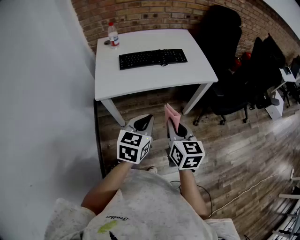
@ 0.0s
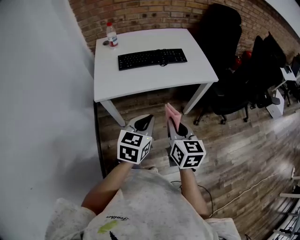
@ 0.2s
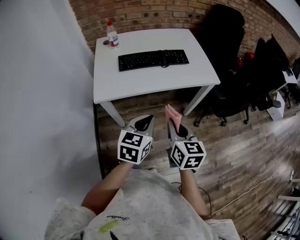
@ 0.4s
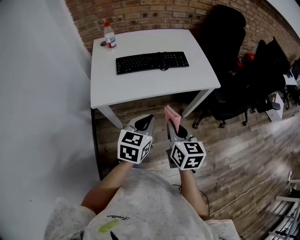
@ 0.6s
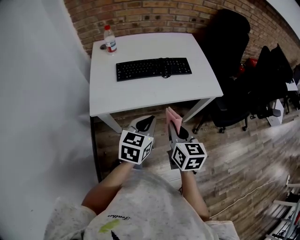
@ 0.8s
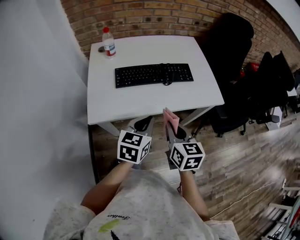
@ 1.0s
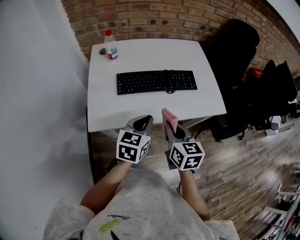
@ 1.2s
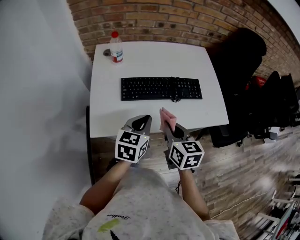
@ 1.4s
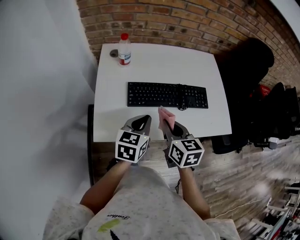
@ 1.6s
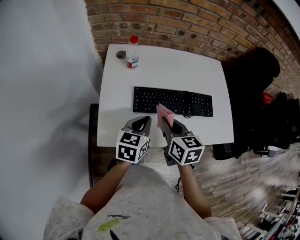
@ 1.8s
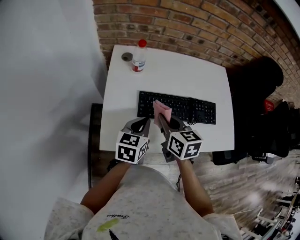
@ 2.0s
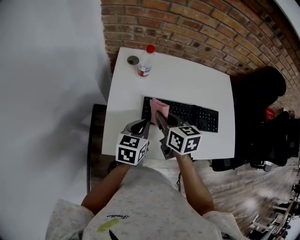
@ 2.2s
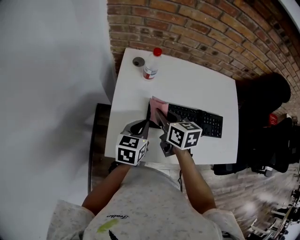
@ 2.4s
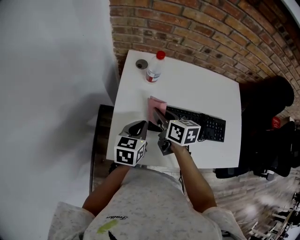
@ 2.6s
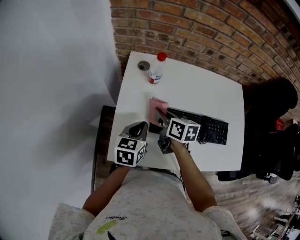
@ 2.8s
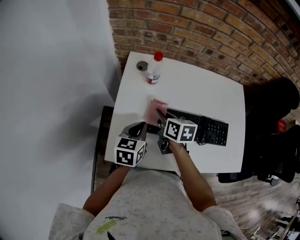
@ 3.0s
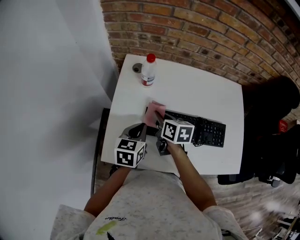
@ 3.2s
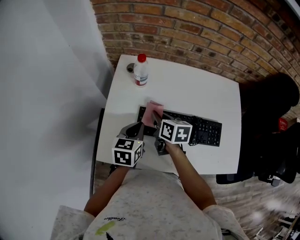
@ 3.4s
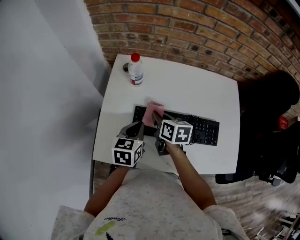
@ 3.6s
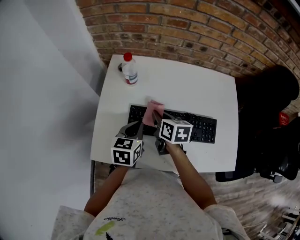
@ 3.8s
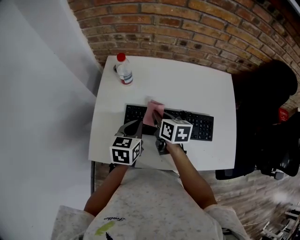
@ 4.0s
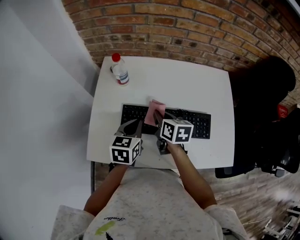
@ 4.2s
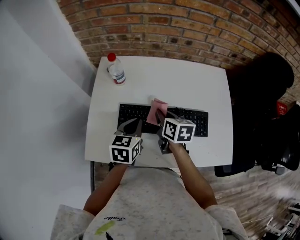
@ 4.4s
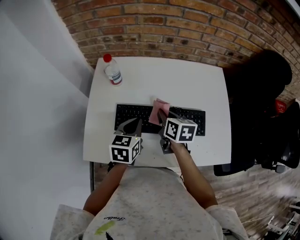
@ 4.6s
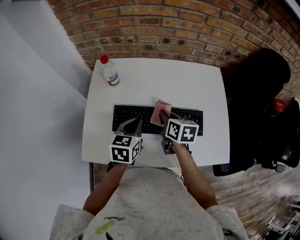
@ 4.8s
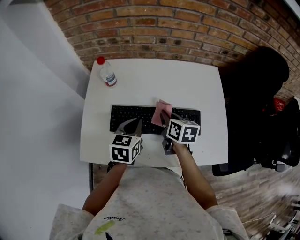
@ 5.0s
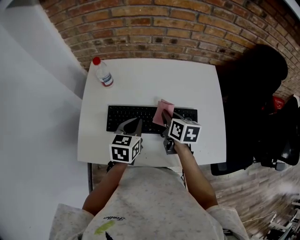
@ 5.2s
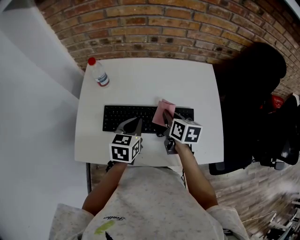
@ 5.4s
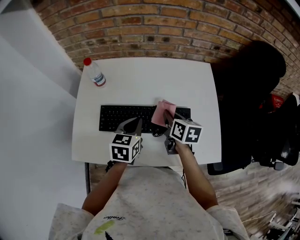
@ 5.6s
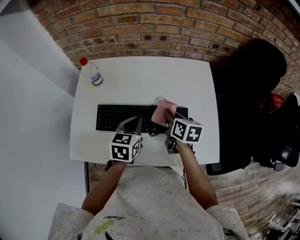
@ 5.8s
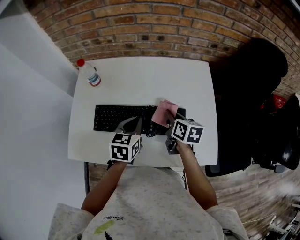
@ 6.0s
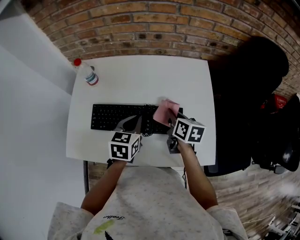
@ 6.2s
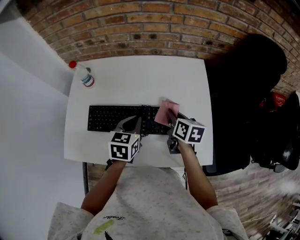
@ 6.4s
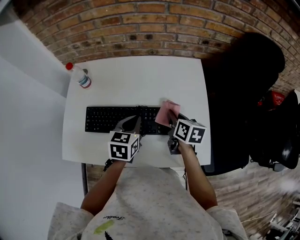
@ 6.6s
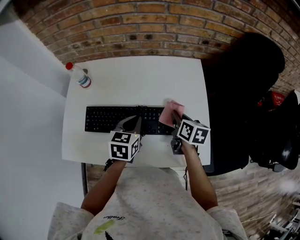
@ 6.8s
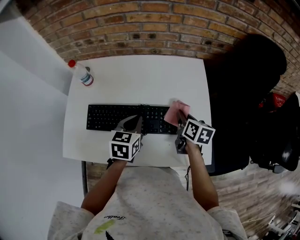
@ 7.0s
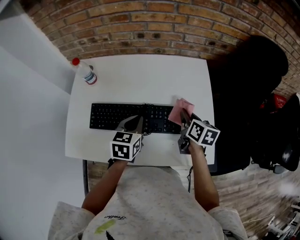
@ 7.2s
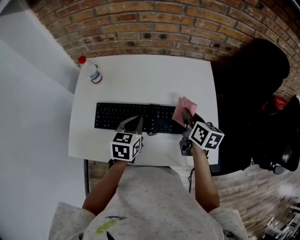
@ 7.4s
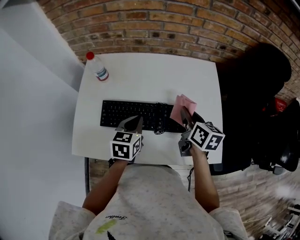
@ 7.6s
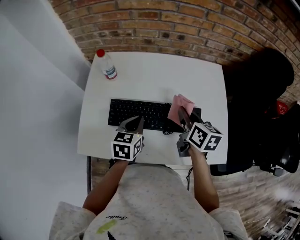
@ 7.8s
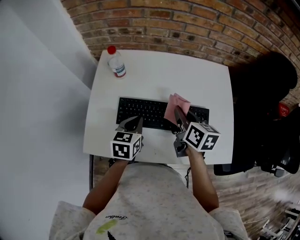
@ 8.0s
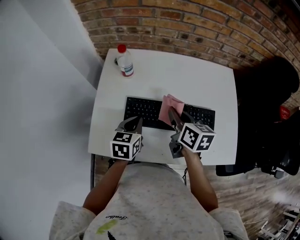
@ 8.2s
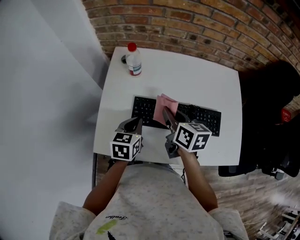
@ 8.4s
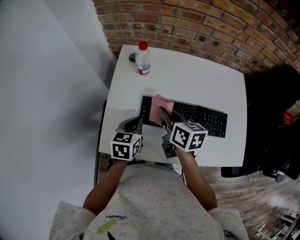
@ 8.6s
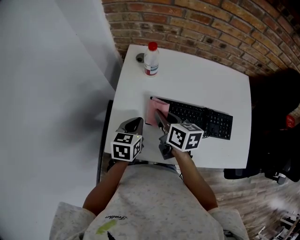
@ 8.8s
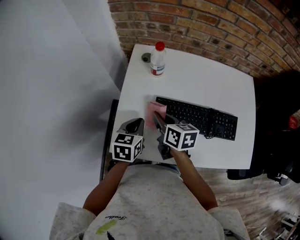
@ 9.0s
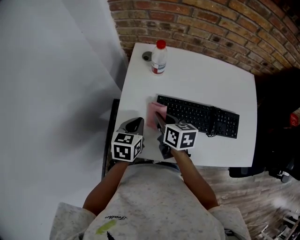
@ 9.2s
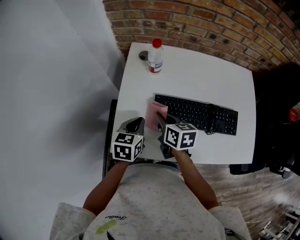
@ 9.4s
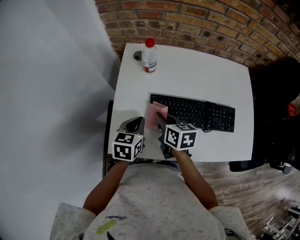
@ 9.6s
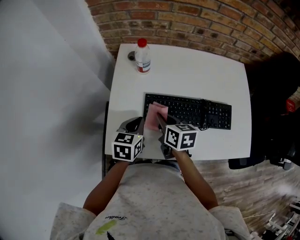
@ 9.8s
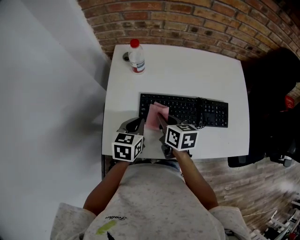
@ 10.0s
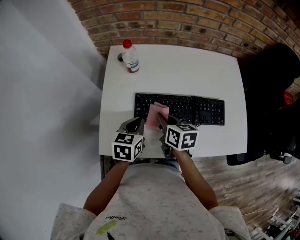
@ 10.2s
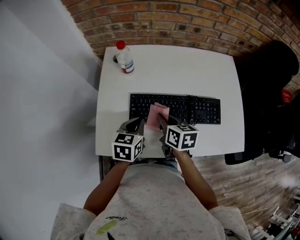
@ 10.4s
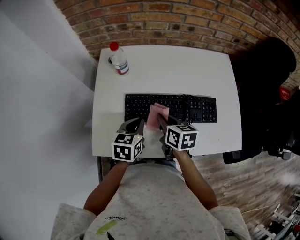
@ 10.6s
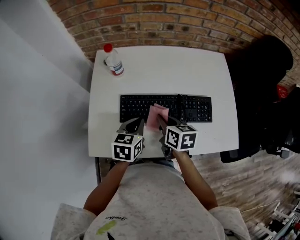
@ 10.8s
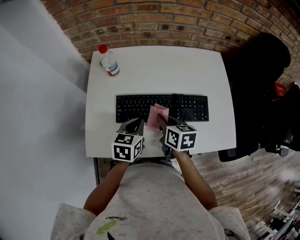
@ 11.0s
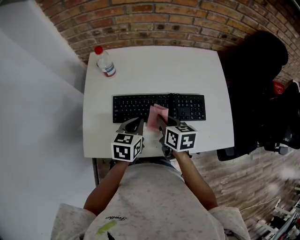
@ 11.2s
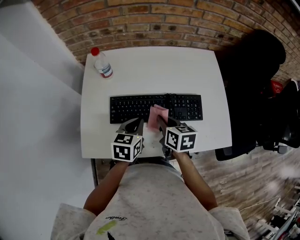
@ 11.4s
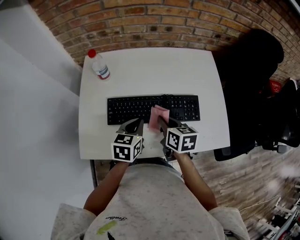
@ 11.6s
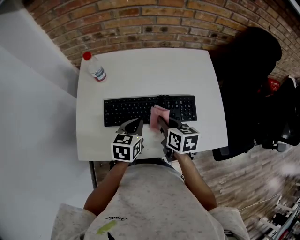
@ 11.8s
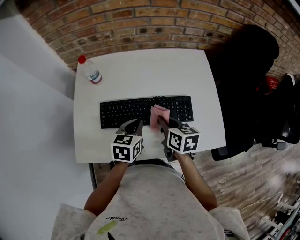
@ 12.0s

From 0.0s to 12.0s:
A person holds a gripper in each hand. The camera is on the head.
From 0.0s to 1.6s: The right gripper heads forward and to the left, covering roughly 35 cm. The left gripper shifts approximately 30 cm forward.
From 1.6s to 3.0s: The two grippers go some 20 cm forward and to the left. The right gripper changes its angle by some 20 degrees.
From 3.0s to 4.4s: Both grippers move to the right, some 15 cm.
From 4.4s to 6.0s: Both grippers travel together to the right, some 15 cm.
From 6.0s to 7.6s: The right gripper travels upward by approximately 5 cm, and moves approximately 10 cm to the right and comes back.
From 7.6s to 9.0s: Both grippers travel together to the left, some 30 cm. The right gripper swivels some 20 degrees.
From 9.0s to 10.4s: The grippers both shift to the right by some 10 cm.
From 10.4s to 12.0s: Both grippers move to the right, approximately 15 cm.

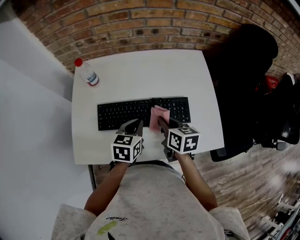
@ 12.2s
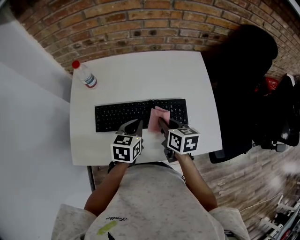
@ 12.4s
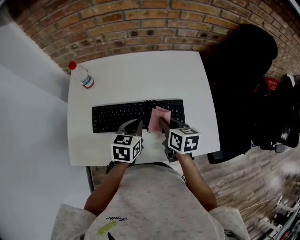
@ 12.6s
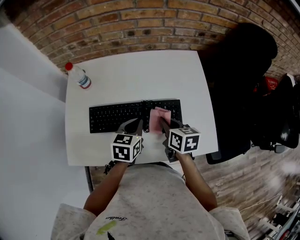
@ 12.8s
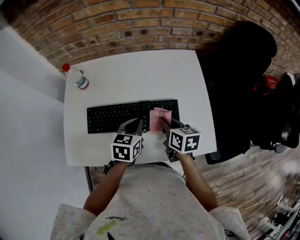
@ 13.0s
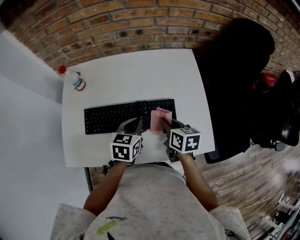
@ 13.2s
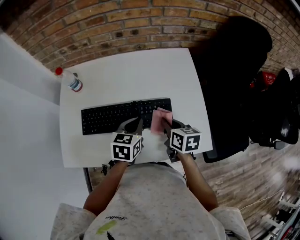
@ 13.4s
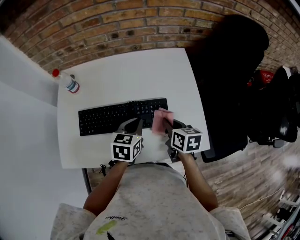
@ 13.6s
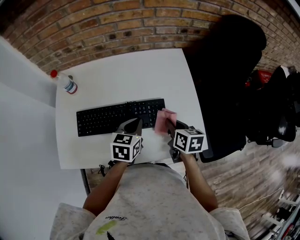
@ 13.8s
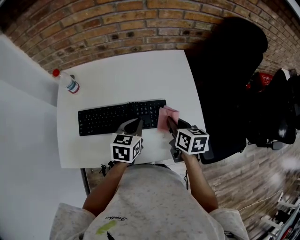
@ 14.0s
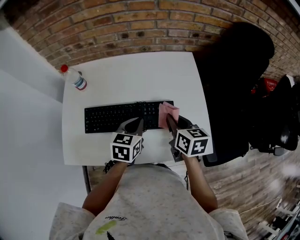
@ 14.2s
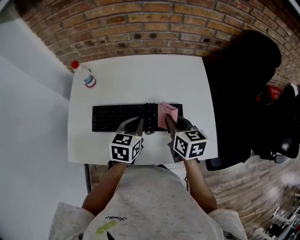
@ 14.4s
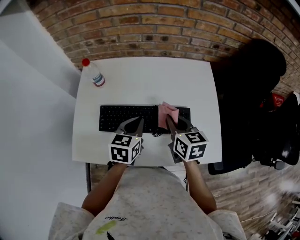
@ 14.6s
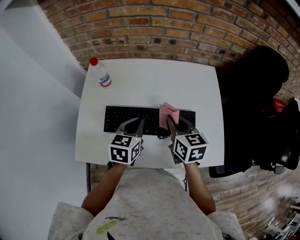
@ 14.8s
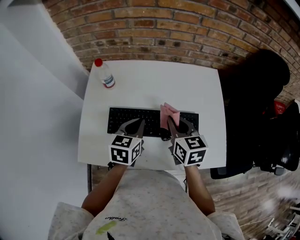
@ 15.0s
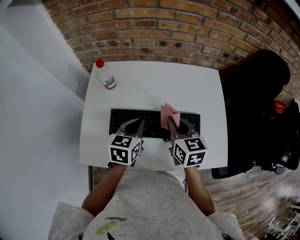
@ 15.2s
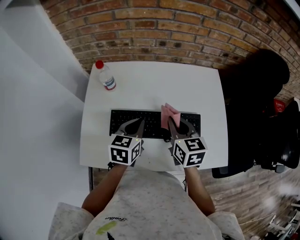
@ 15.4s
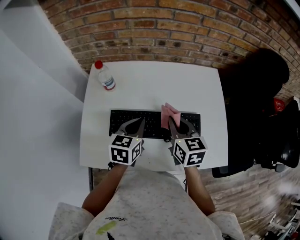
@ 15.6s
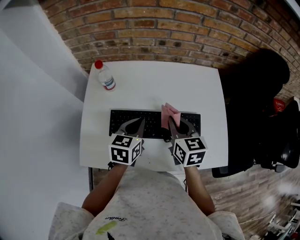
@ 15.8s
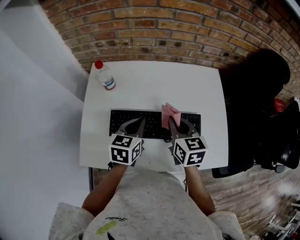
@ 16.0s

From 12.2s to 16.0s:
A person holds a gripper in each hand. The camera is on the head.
From 12.2s to 13.4s: Both grippers move to the right, roughly 10 cm.
From 13.4s to 14.8s: The right gripper is displaced to the left and upward by about 15 cm. Meanwhile the left gripper is displaced to the left by roughly 10 cm.
From 14.8s to 16.0s: The grippers stay close to where they were, moving slightly.

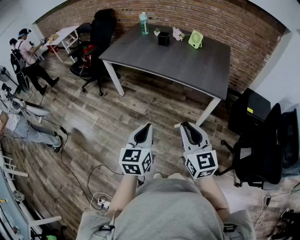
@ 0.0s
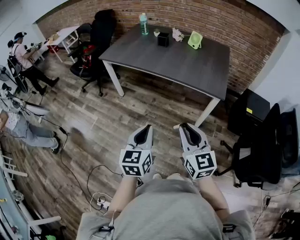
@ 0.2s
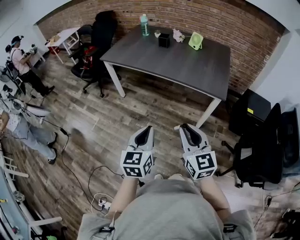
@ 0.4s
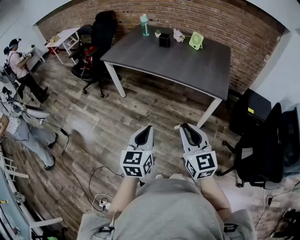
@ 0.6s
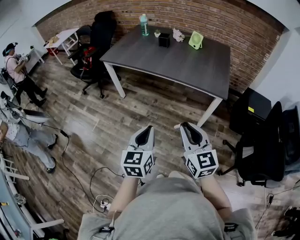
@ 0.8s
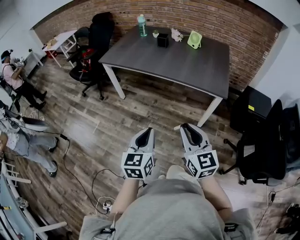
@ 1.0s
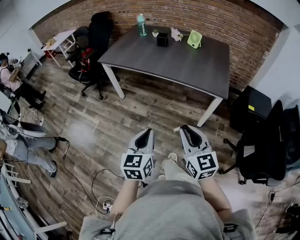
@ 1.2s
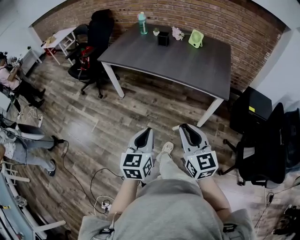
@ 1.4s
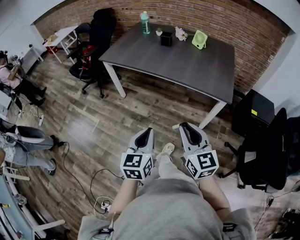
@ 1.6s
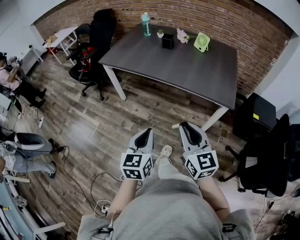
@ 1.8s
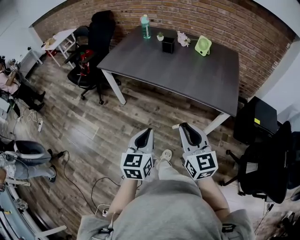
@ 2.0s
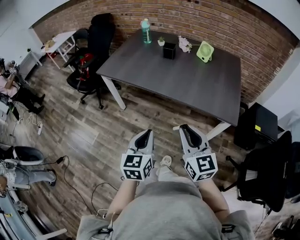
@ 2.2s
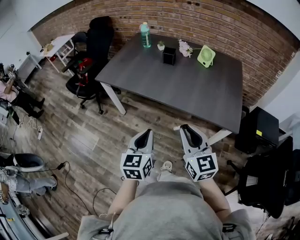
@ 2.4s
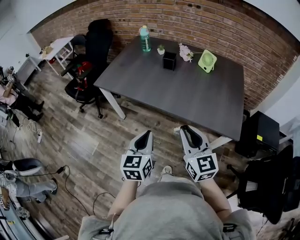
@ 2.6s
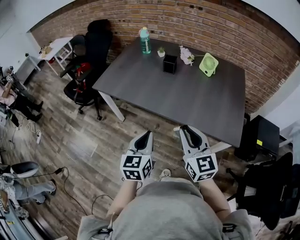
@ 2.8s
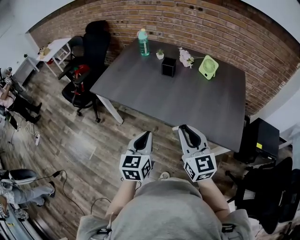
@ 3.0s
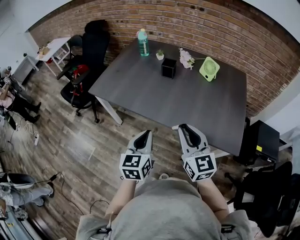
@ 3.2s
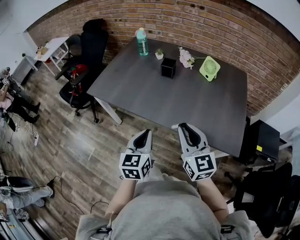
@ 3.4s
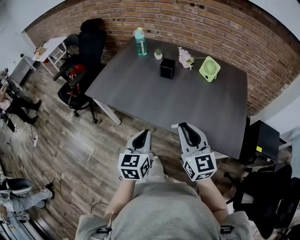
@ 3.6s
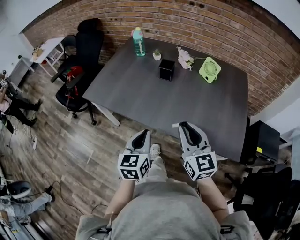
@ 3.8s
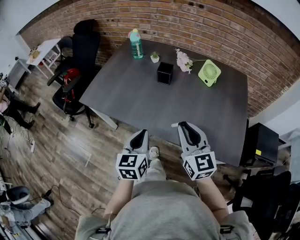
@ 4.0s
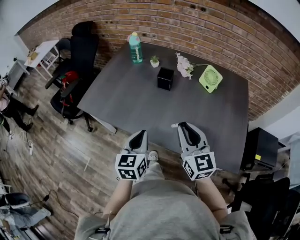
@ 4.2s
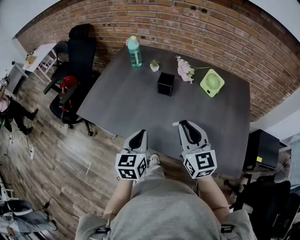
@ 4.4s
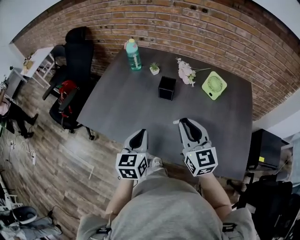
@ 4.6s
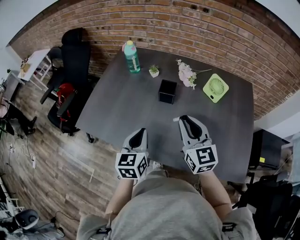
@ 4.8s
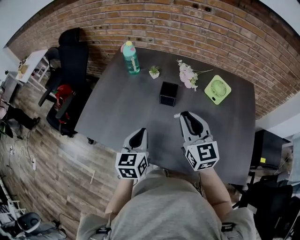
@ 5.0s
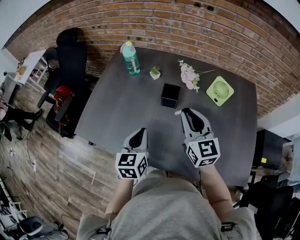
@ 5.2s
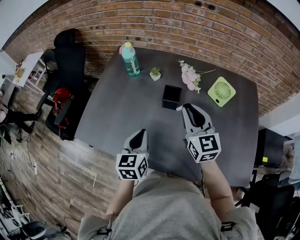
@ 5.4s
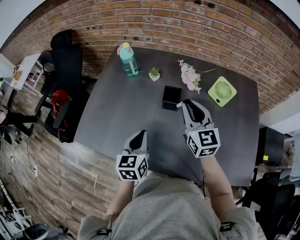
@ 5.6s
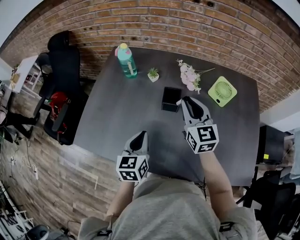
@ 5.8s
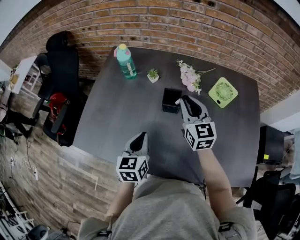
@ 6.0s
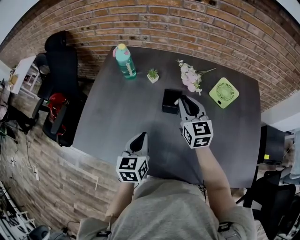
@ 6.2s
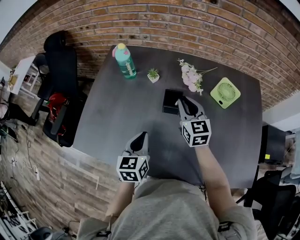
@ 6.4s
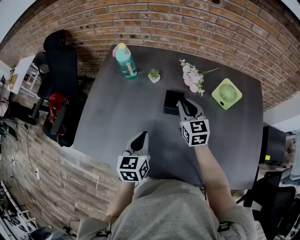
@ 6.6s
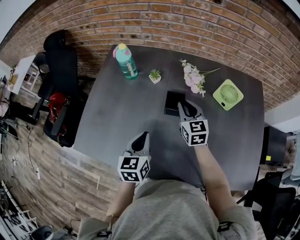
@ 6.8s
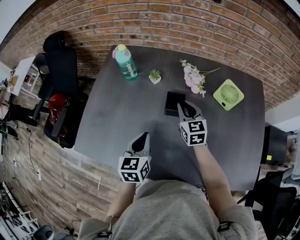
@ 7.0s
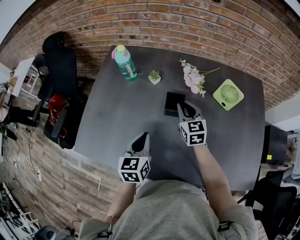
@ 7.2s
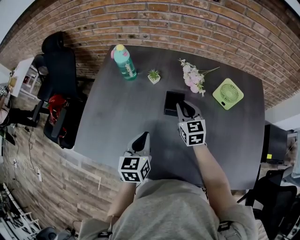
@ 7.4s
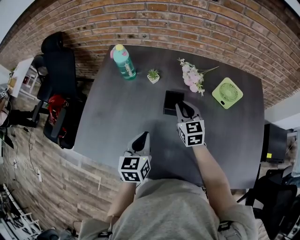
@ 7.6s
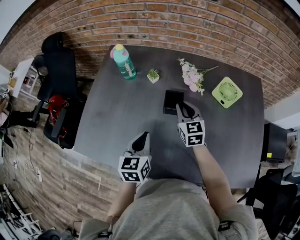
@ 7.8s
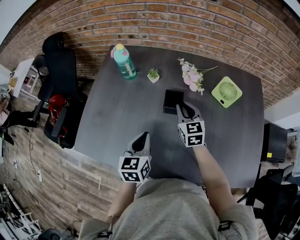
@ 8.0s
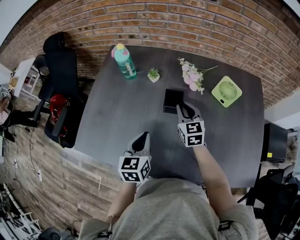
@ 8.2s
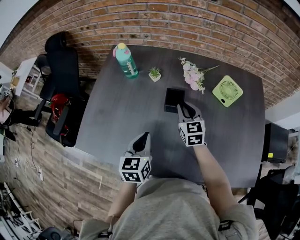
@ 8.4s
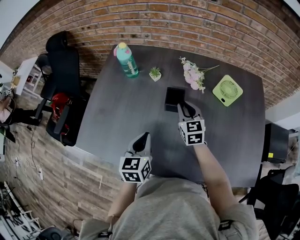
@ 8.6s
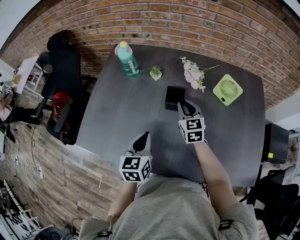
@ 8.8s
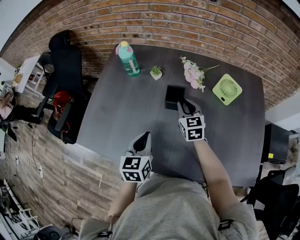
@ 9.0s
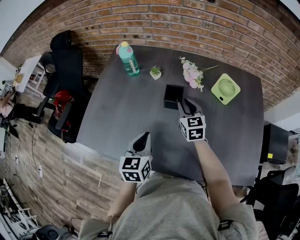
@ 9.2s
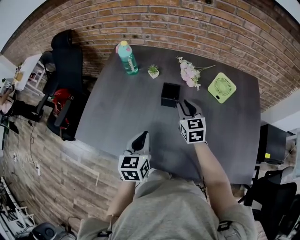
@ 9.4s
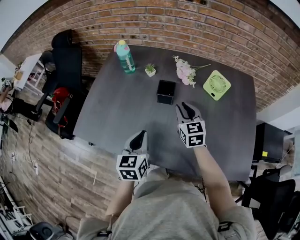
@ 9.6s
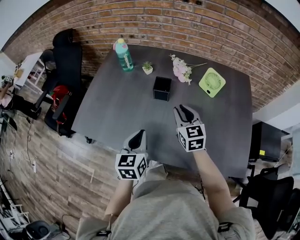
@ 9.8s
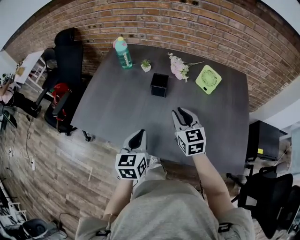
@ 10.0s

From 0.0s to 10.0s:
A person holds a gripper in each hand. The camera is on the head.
From 0.0s to 1.4s: The grippers make only small movements.
From 1.4s to 2.8s: The two grippers go some 30 cm forward.
From 2.8s to 4.2s: Both grippers move forward, approximately 20 cm.
From 4.2s to 5.8s: Both grippers travel together forward, approximately 25 cm.
From 5.8s to 7.2s: The left gripper ends up about 5 cm from where it was; the right gripper is displaced downward and forward by about 15 cm.
From 7.2s to 8.6s: There are only small adjustments of the grippers.
From 8.6s to 10.0s: The right gripper goes some 20 cm backward and upward. The left gripper moves backward and to the right, roughly 15 cm.
